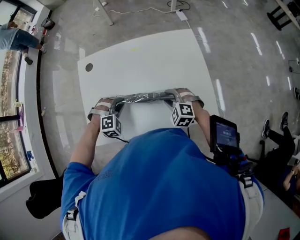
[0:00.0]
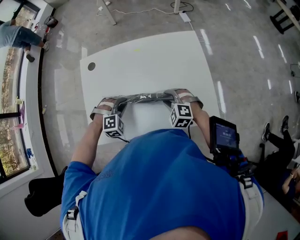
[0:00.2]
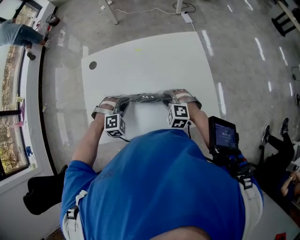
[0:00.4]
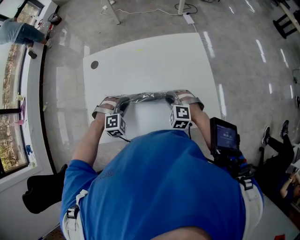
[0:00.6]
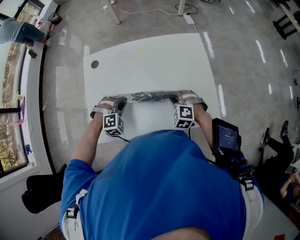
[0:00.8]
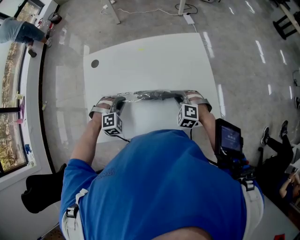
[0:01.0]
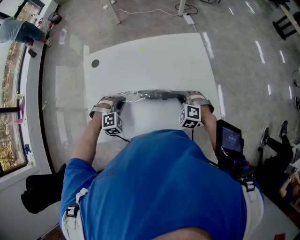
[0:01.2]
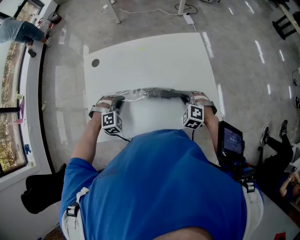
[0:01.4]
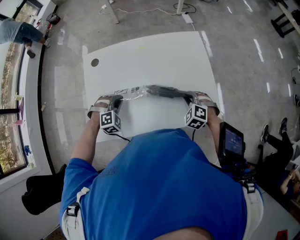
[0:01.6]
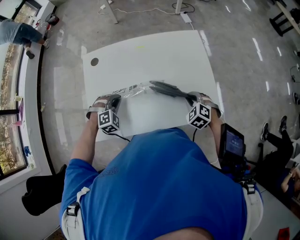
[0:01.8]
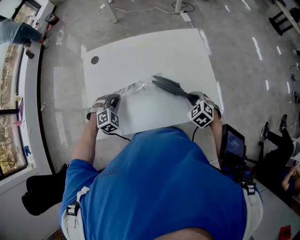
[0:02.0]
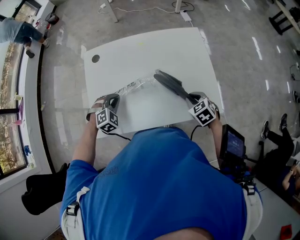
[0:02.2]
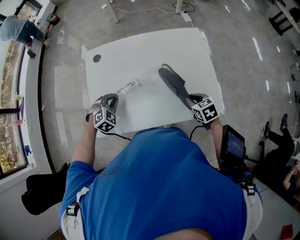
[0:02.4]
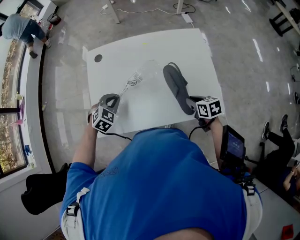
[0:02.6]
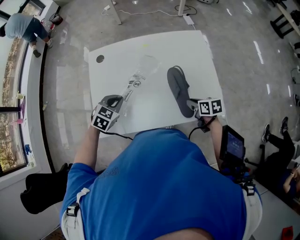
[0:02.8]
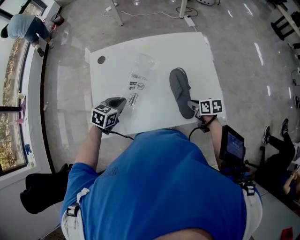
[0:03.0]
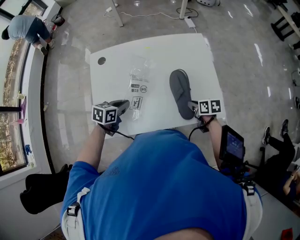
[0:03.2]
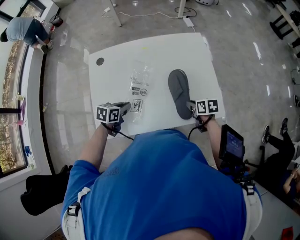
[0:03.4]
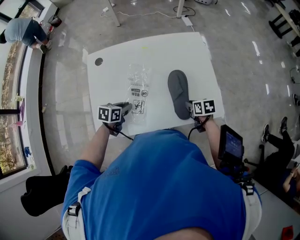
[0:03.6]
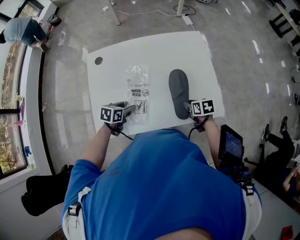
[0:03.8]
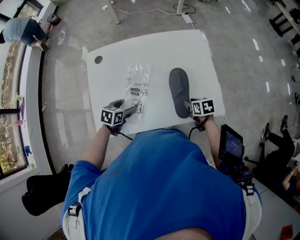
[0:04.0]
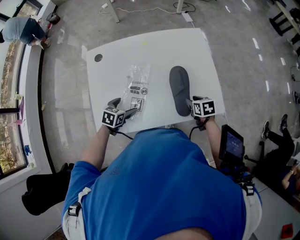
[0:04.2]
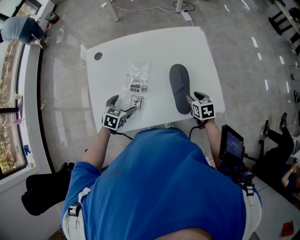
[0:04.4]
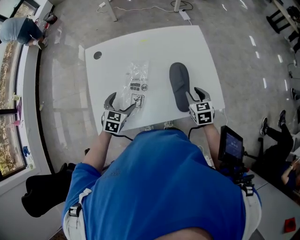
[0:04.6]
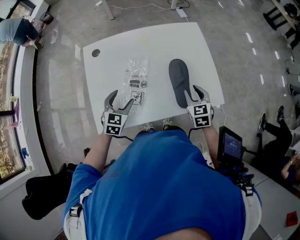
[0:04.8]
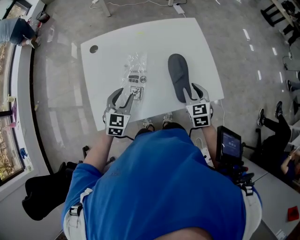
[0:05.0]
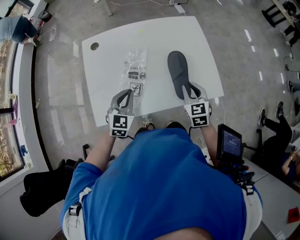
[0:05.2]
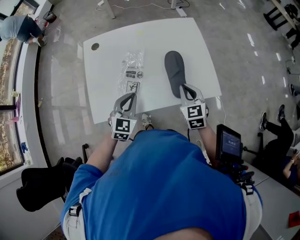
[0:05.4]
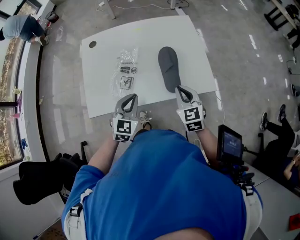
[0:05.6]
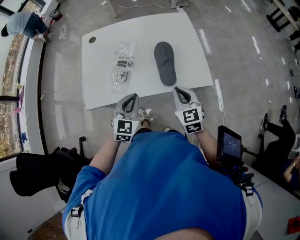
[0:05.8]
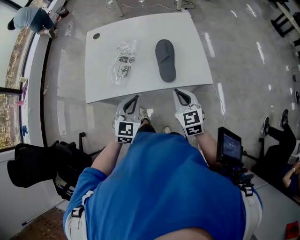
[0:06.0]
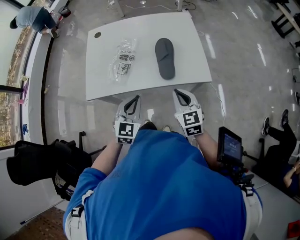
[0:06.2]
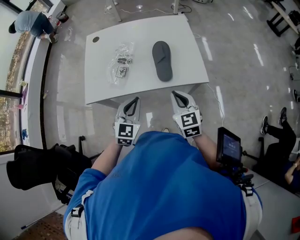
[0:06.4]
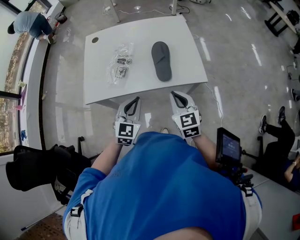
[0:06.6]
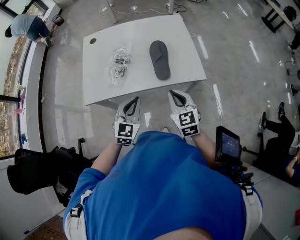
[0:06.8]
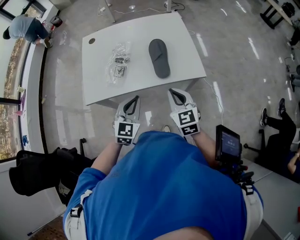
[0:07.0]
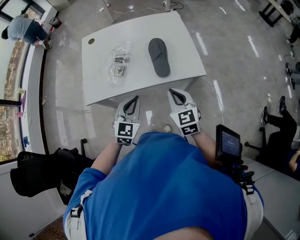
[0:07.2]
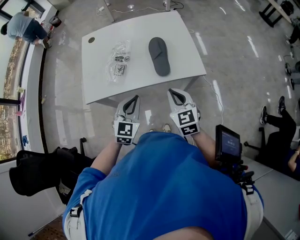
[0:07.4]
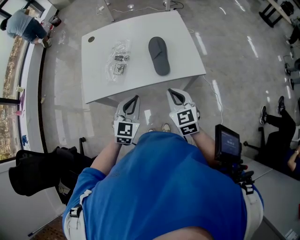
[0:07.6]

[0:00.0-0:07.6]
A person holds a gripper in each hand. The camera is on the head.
0:00.0 to 0:01.6: The right gripper travels to the right by roughly 10 cm.
0:01.6 to 0:03.0: The left gripper rotates around the line of its fingers by roughly 60 degrees, counterclockwise from behind; the right gripper rotates around the line of its fingers by some 80 degrees, clockwise from behind.
0:03.0 to 0:04.6: The left gripper opens its fingers. The right gripper shifts by some 5 cm, rotates roughly 40 degrees, and opens up.
0:04.6 to 0:06.0: The right gripper travels backward by roughly 25 cm, swivels about 20 degrees, and closes. The left gripper heads backward, to the right and upward, covering some 30 cm, changes its angle by some 20 degrees, and closes its fingers.
0:06.0 to 0:07.6: The left gripper ends up approximately 5 cm from where it was; the right gripper heads backward, covering some 5 cm.

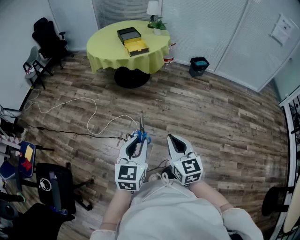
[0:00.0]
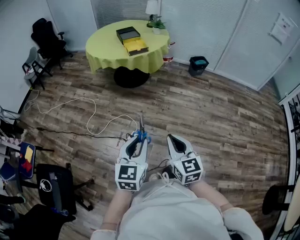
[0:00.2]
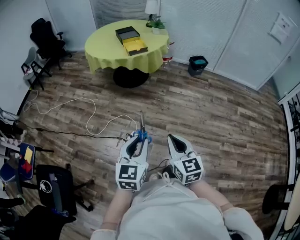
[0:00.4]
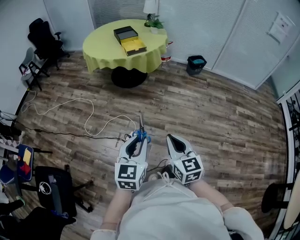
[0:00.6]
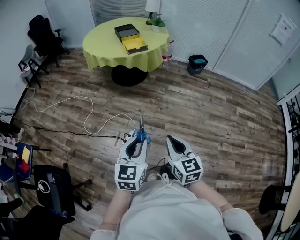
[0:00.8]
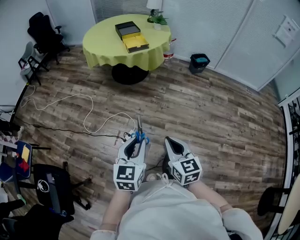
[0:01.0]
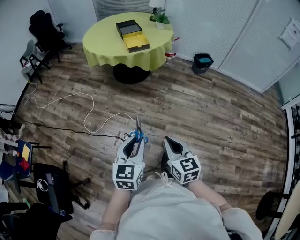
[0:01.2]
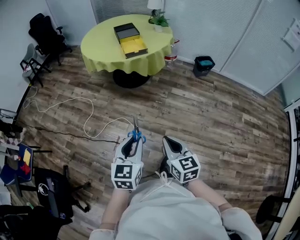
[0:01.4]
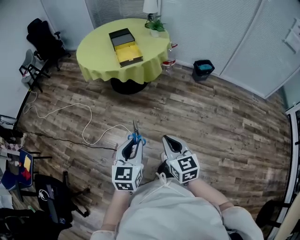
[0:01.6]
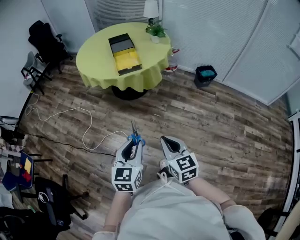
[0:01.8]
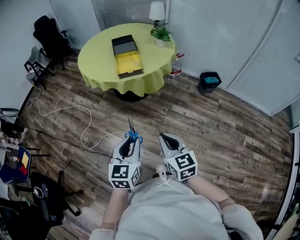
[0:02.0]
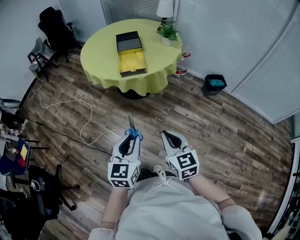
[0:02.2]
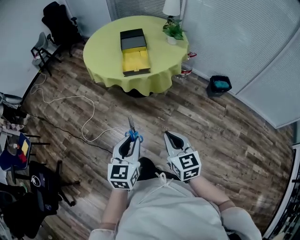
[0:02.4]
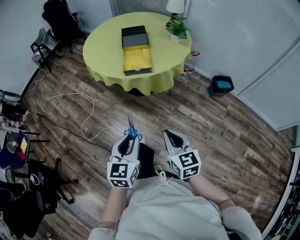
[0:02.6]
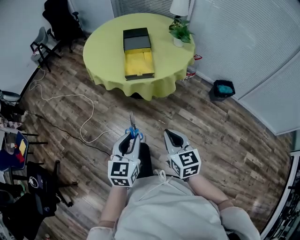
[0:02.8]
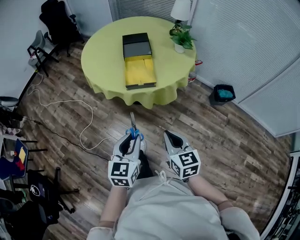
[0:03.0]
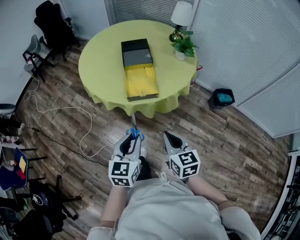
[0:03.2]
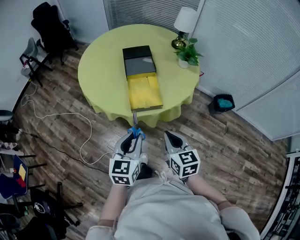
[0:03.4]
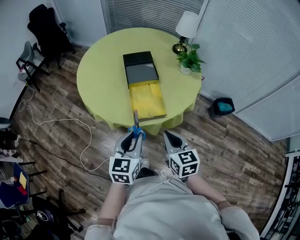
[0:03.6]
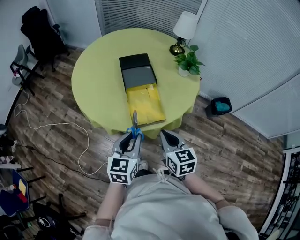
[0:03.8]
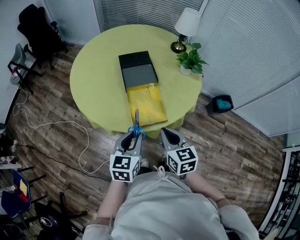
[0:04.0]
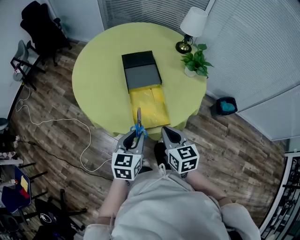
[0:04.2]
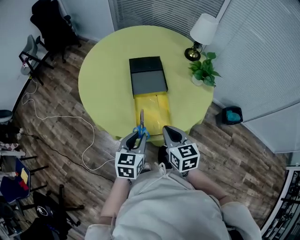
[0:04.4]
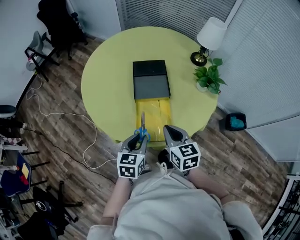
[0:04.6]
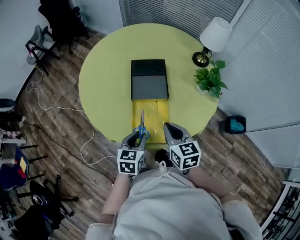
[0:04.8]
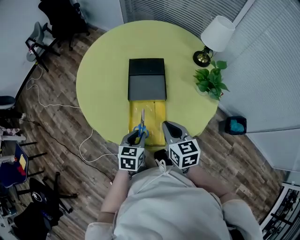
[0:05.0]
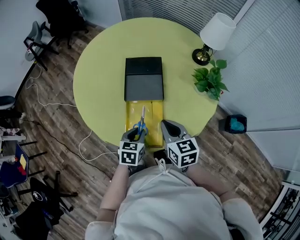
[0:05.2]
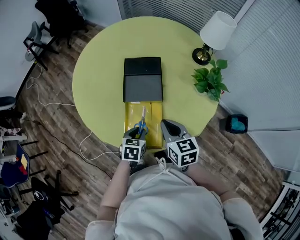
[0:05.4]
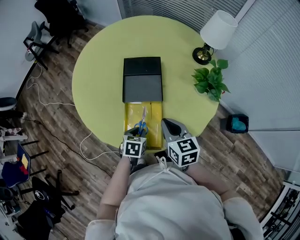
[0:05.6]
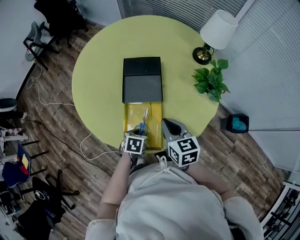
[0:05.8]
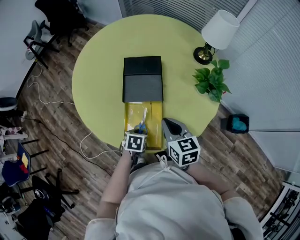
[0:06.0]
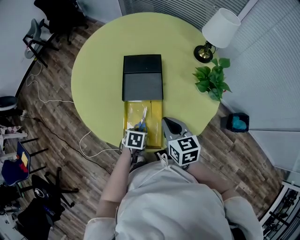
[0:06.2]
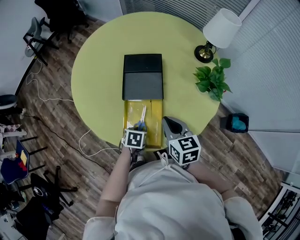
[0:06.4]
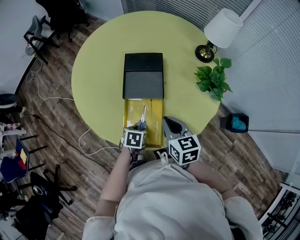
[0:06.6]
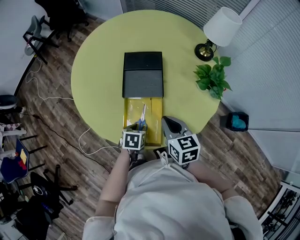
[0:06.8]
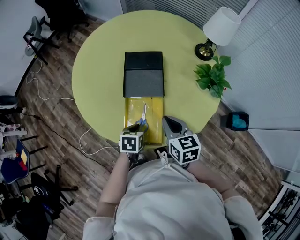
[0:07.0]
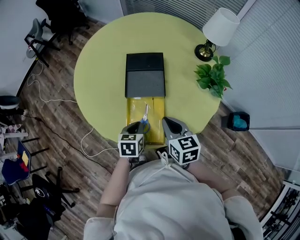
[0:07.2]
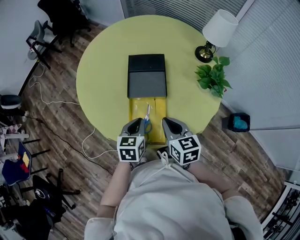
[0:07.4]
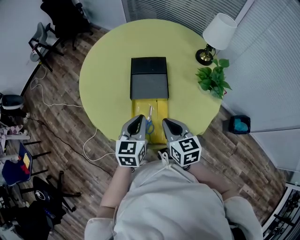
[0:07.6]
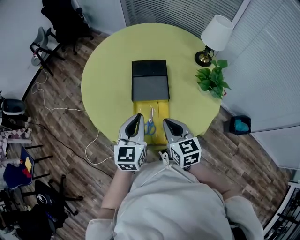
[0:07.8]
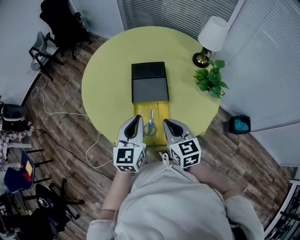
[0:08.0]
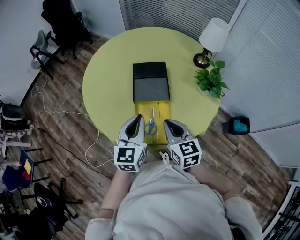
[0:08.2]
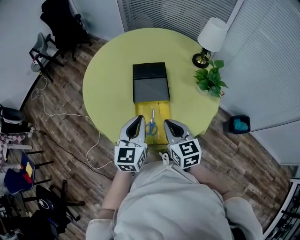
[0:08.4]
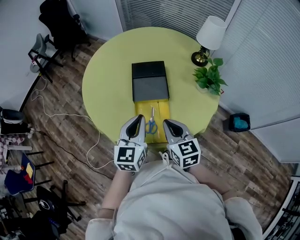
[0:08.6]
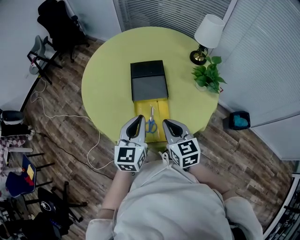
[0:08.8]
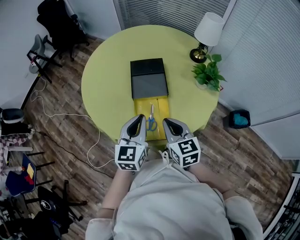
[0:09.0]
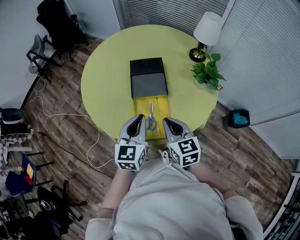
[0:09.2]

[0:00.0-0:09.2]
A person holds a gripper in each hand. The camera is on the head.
0:00.0 to 0:01.6: The grippers both shift forward by approximately 25 cm.
0:01.6 to 0:03.0: Both grippers move forward, some 35 cm.
0:03.0 to 0:04.6: The two grippers go some 40 cm forward.
0:04.6 to 0:06.2: The left gripper is displaced downward and forward by approximately 20 cm, and points its fingers approximately 40 degrees further downward; the right gripper shifts approximately 10 cm forward and to the right.
0:06.2 to 0:07.6: The right gripper changes place by approximately 5 cm. The left gripper shifts approximately 20 cm upward, and angles its fingers upward, by about 50 degrees.
0:07.6 to 0:09.2: The right gripper moves roughly 5 cm. The left gripper heads upward, covering about 5 cm.

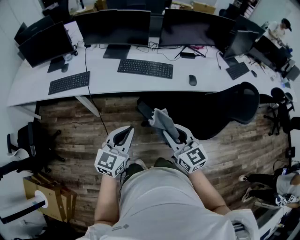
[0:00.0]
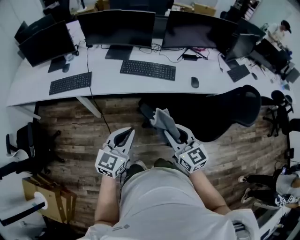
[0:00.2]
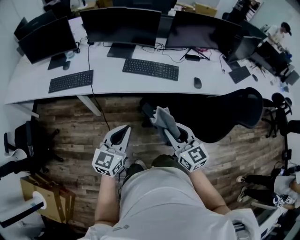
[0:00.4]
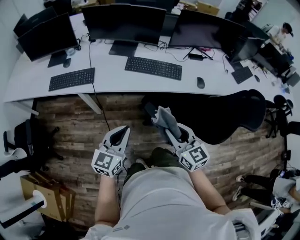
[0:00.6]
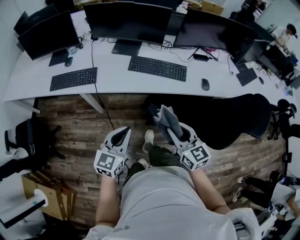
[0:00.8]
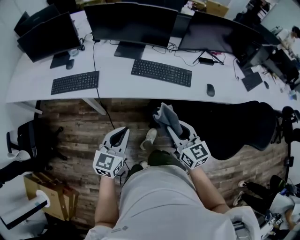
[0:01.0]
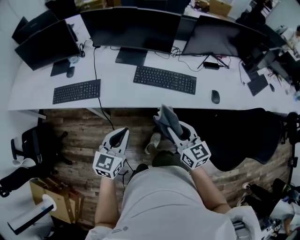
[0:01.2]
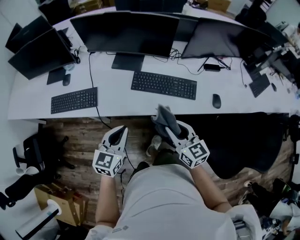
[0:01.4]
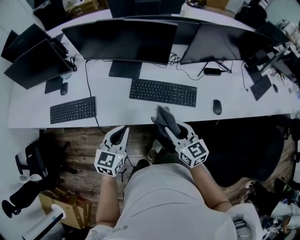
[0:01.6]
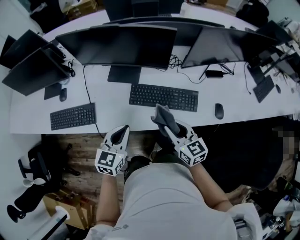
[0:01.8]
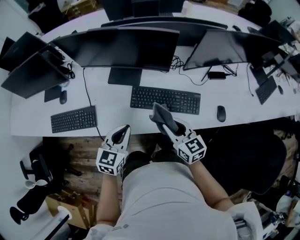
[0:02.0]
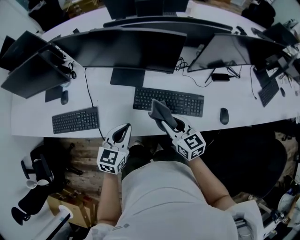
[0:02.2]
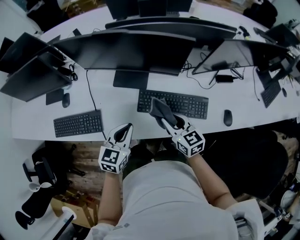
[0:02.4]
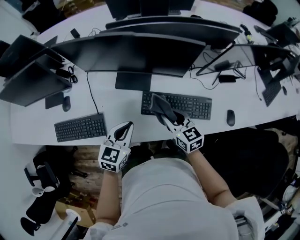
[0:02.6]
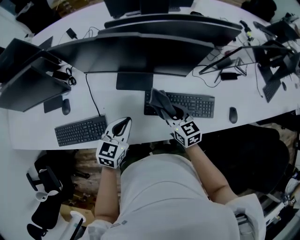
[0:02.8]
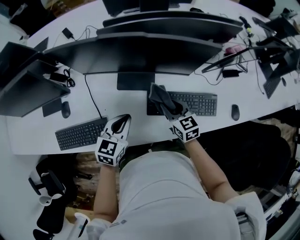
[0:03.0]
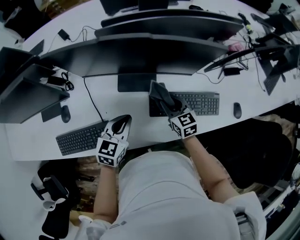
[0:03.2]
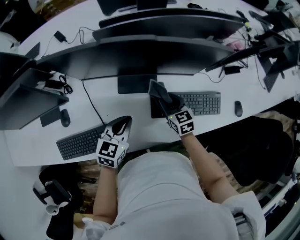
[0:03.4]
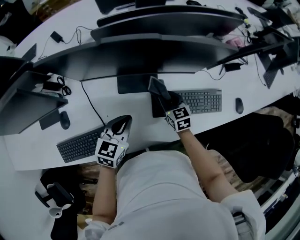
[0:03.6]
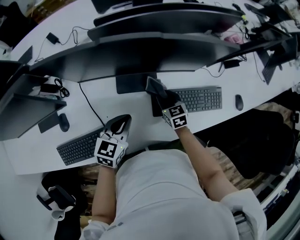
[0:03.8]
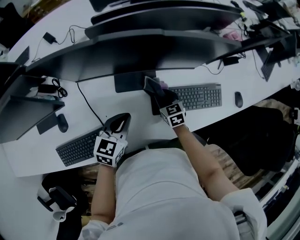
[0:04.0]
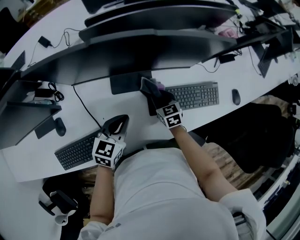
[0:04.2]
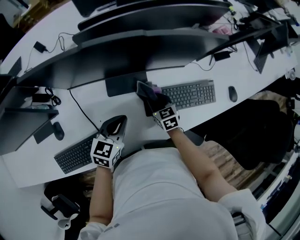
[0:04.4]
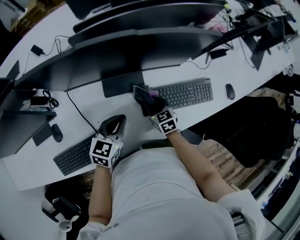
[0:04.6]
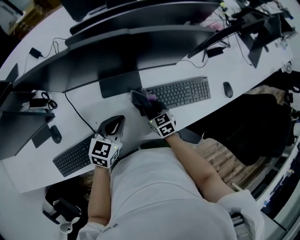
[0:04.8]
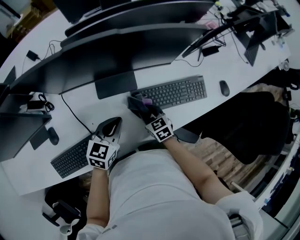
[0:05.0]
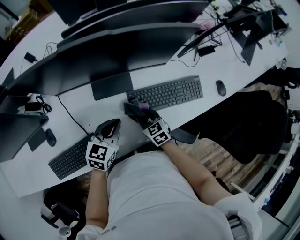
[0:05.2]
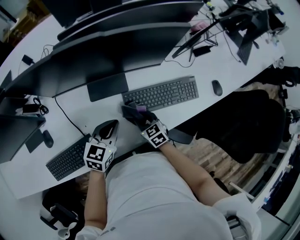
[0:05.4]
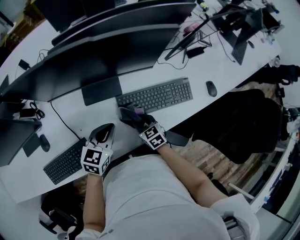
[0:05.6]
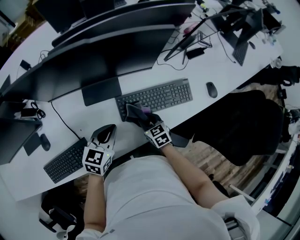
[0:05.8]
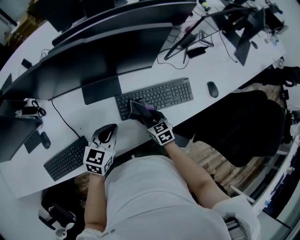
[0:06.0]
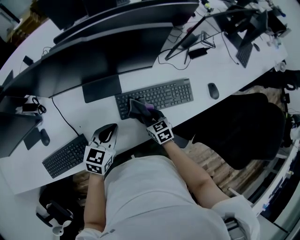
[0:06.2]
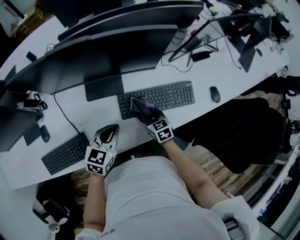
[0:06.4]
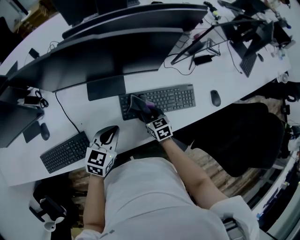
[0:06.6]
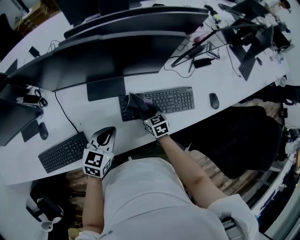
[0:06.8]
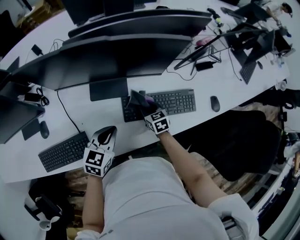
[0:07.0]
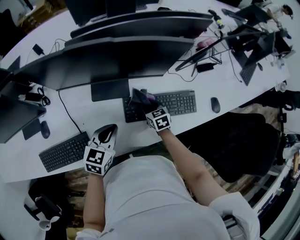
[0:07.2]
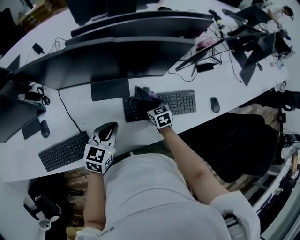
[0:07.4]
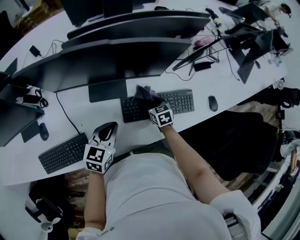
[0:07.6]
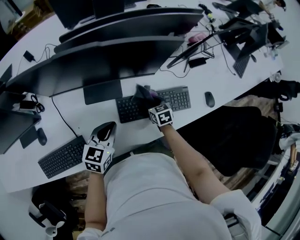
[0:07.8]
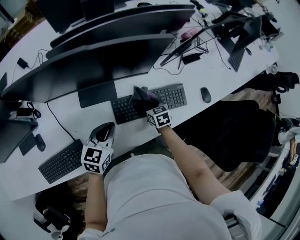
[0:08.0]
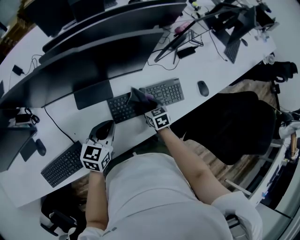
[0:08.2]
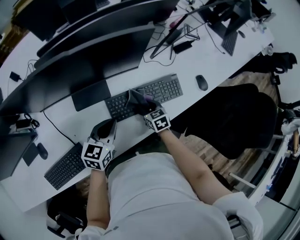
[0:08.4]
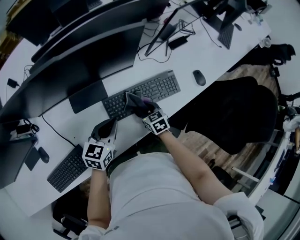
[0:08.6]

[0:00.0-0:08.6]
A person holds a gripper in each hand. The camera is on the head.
0:00.0 to 0:01.4: The right gripper travels forward by some 25 cm; the left gripper shifts about 25 cm forward and to the left.
0:01.4 to 0:02.8: Both grippers move forward, roughly 25 cm.
0:02.8 to 0:04.4: The right gripper heads downward and to the left, covering roughly 15 cm, and turns by approximately 20 degrees; the left gripper moves downward, forward and to the left, some 10 cm.
0:04.4 to 0:05.8: The left gripper goes some 5 cm to the right; the right gripper heads backward and to the right, covering some 10 cm.
0:05.8 to 0:07.2: The right gripper travels forward by roughly 10 cm.
0:07.2 to 0:08.6: The left gripper moves to the right, roughly 5 cm; the right gripper goes roughly 10 cm to the right and backward.
